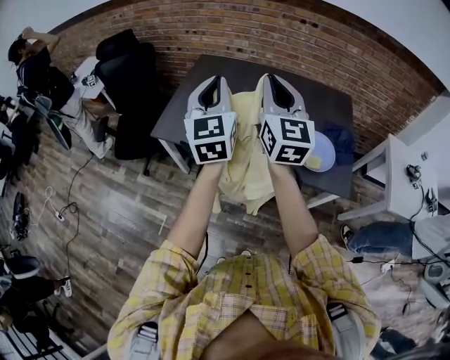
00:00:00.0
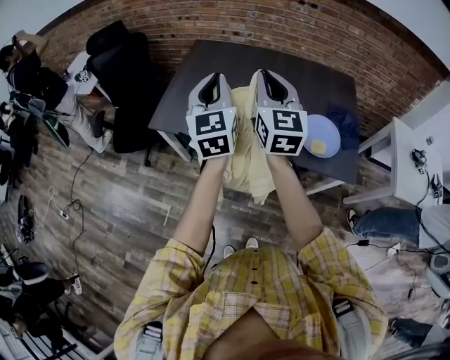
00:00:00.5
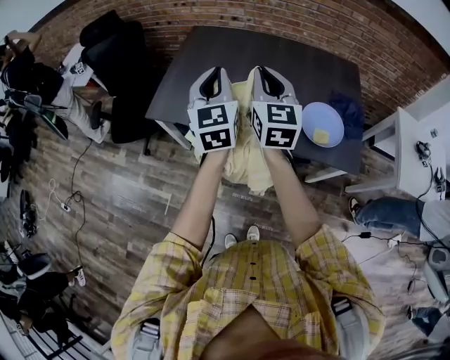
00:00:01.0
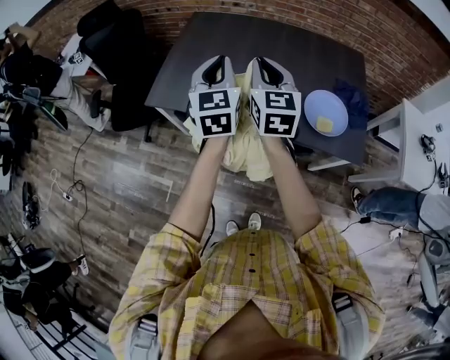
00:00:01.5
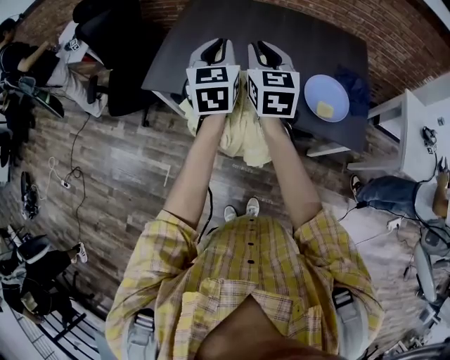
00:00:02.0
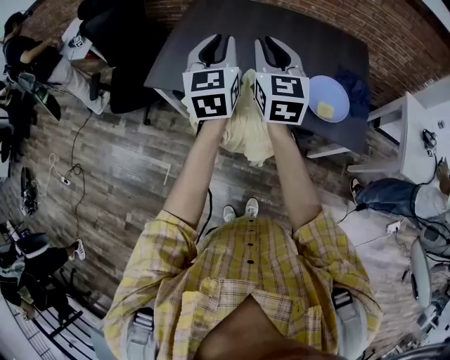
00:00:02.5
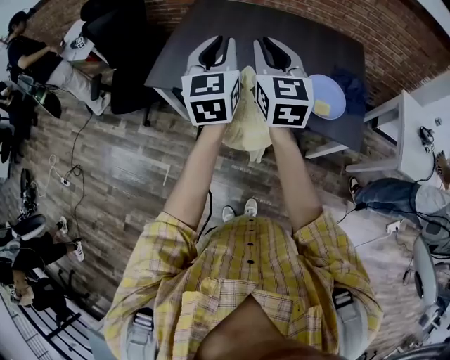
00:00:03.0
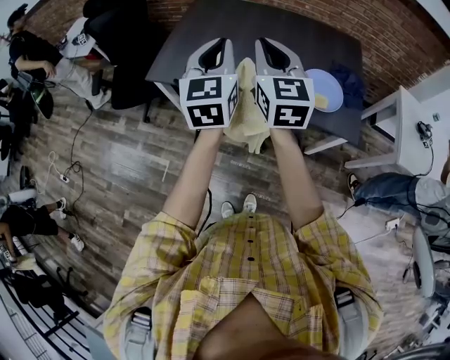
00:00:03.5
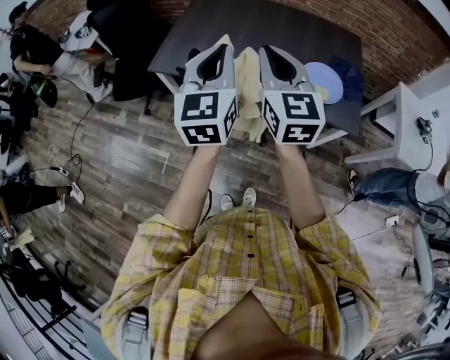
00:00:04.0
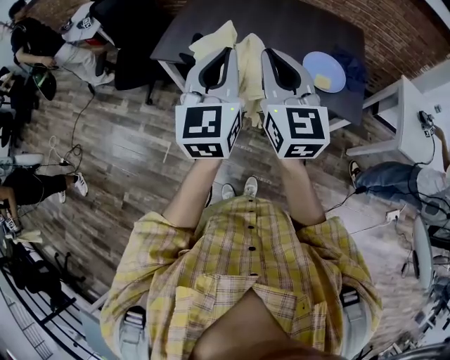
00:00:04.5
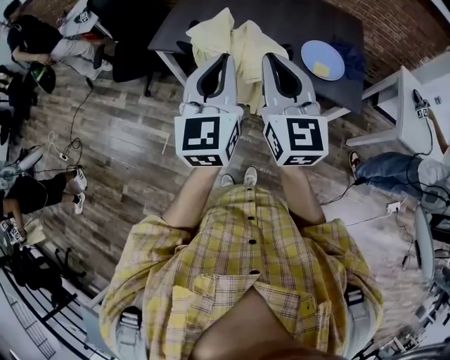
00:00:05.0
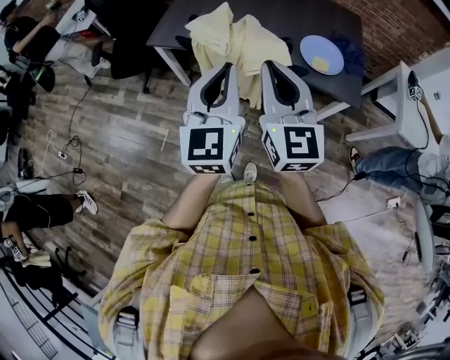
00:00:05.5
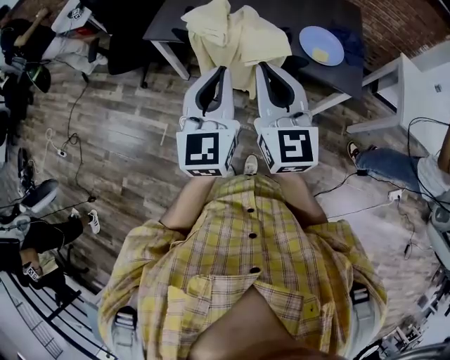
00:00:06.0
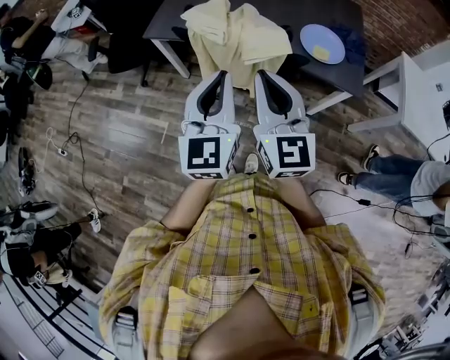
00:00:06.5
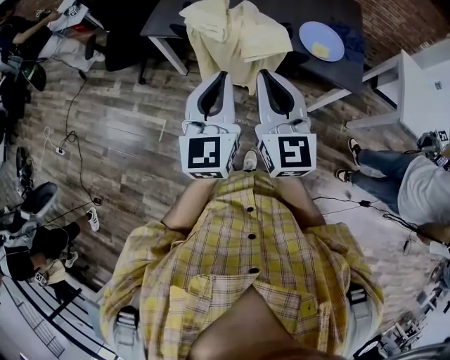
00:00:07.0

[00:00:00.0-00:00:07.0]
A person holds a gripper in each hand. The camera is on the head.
00:00:00.0 to 00:00:02.0: The right gripper goes about 15 cm downward, and rotates some 20 degrees. Meanwhile the left gripper is displaced downward and forward by approximately 15 cm.
00:00:02.0 to 00:00:03.5: The two grippers go roughly 15 cm backward and upward.
00:00:03.5 to 00:00:05.0: The two grippers go roughly 20 cm backward.
00:00:05.0 to 00:00:07.0: The two grippers go approximately 10 cm downward and backward.

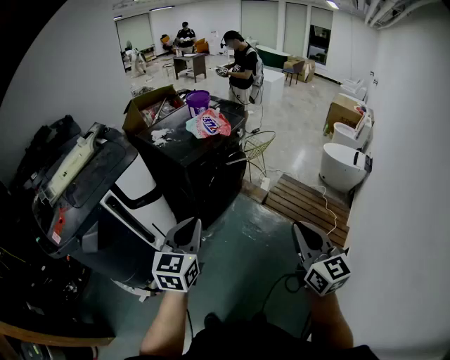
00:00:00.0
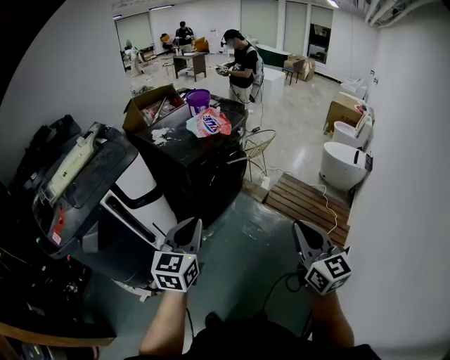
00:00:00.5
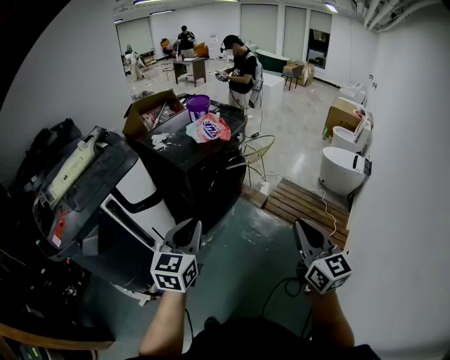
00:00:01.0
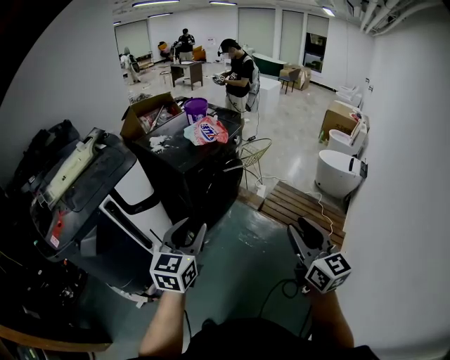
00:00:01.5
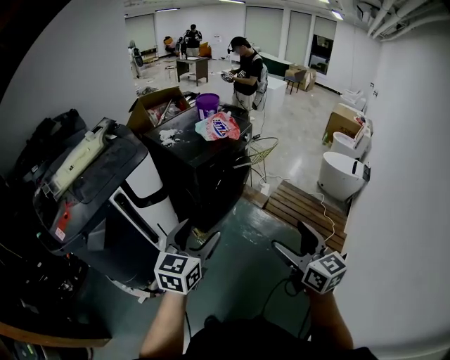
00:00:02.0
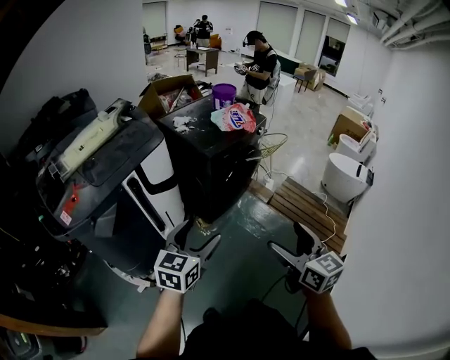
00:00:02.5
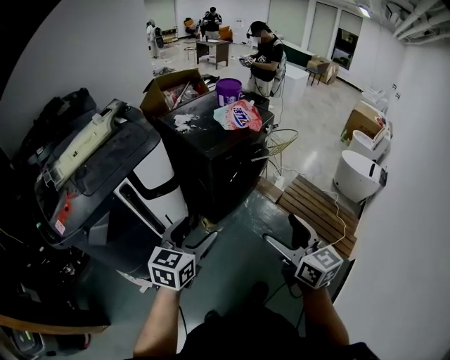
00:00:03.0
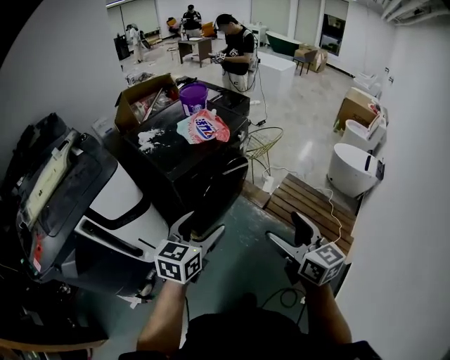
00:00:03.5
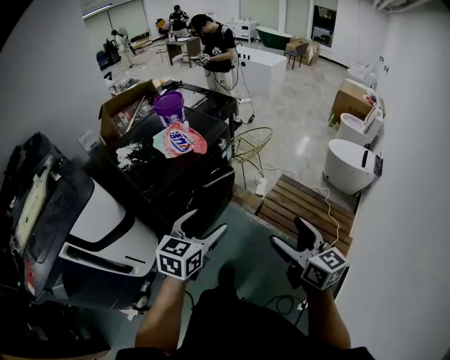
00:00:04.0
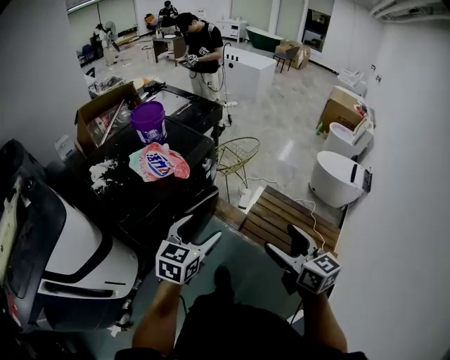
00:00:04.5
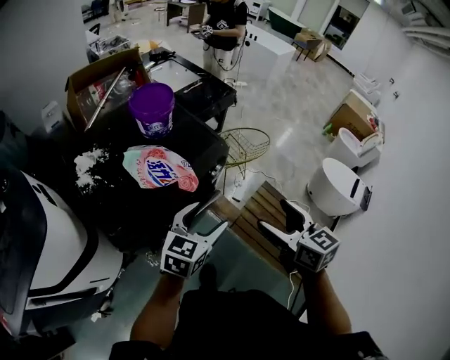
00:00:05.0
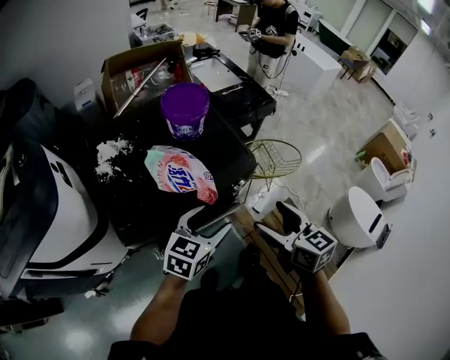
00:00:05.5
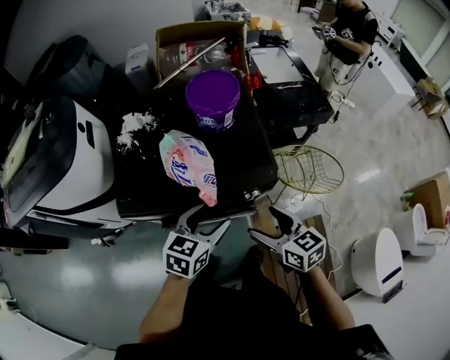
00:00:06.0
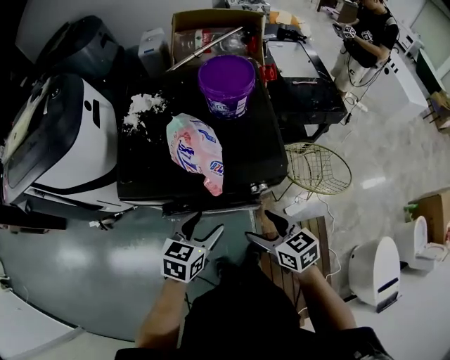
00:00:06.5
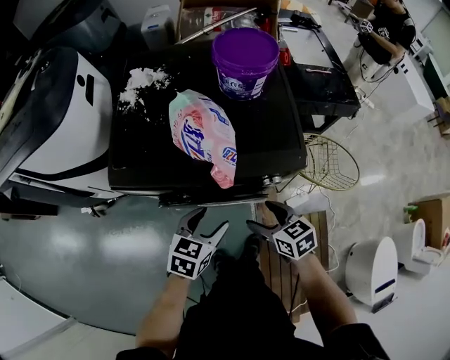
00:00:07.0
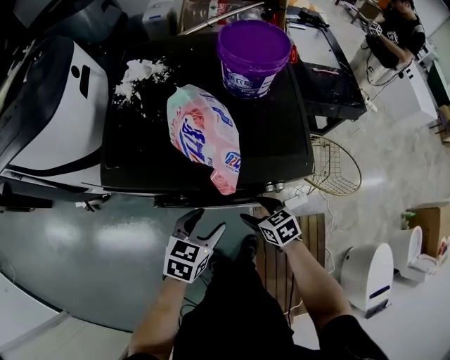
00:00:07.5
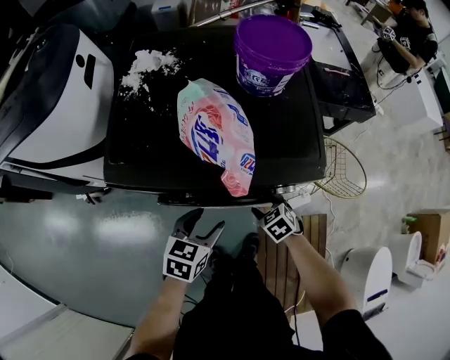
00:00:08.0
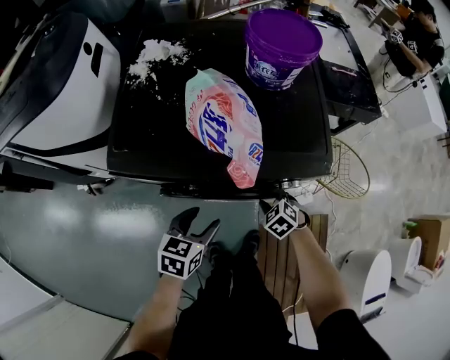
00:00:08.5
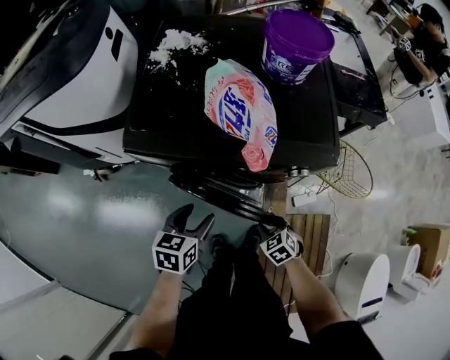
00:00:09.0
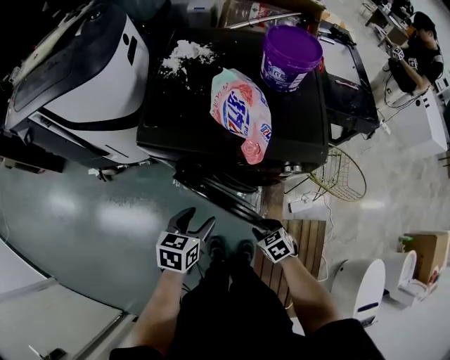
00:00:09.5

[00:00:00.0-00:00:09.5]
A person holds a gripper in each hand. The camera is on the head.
00:00:00.0 to 00:00:02.0: The right gripper heads to the left, covering about 10 cm, and opens up, while the left gripper opens its fingers.
00:00:02.0 to 00:00:04.0: Both grippers travel together forward and to the right, roughly 35 cm.
00:00:04.0 to 00:00:05.5: Both grippers move forward, approximately 35 cm. The right gripper turns by roughly 30 degrees.
00:00:05.5 to 00:00:07.5: The left gripper heads downward, covering about 20 cm, and rotates roughly 40 degrees; the right gripper moves downward, roughly 35 cm, and changes its angle by about 50 degrees.
00:00:07.5 to 00:00:09.5: The right gripper shifts approximately 15 cm backward, and closes up. Meanwhile the left gripper shifts approximately 10 cm to the left and backward.

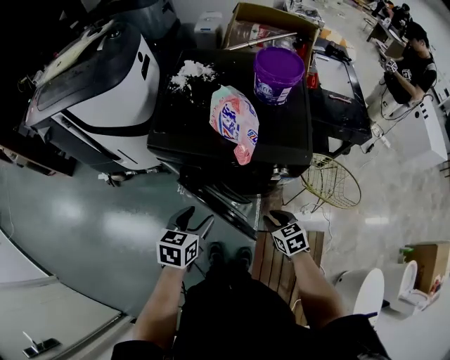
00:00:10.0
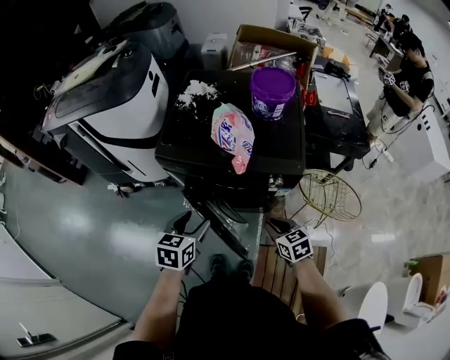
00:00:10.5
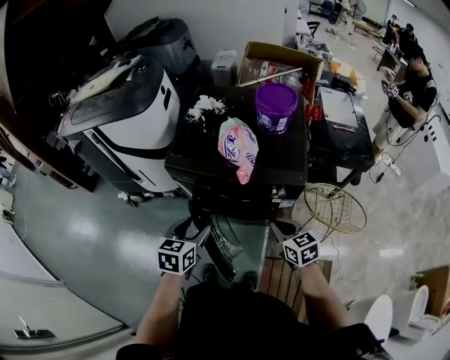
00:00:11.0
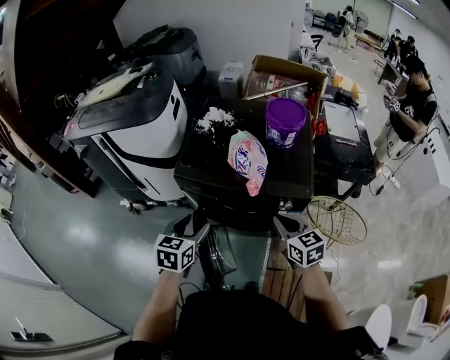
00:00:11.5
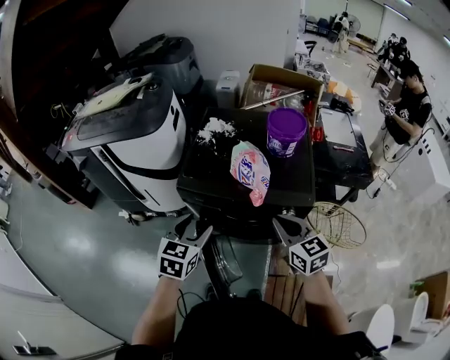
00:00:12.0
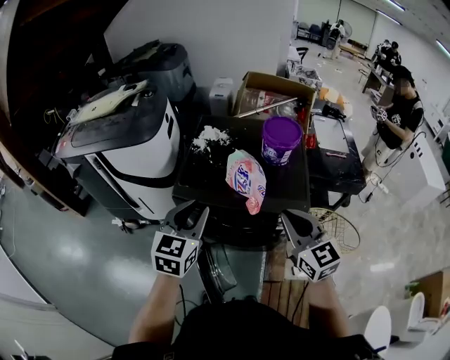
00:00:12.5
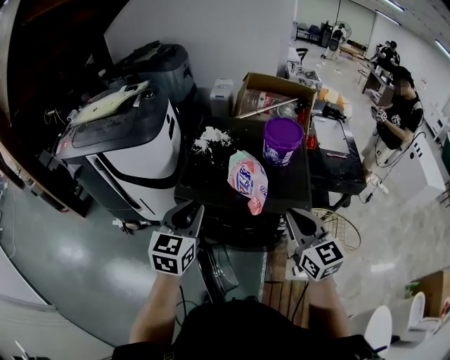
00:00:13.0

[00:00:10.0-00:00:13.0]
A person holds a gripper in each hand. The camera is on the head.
00:00:10.0 to 00:00:11.5: The left gripper travels upward by approximately 10 cm, while the right gripper travels upward by roughly 20 cm, and turns by roughly 20 degrees.
00:00:11.5 to 00:00:13.0: The right gripper is displaced upward by about 15 cm, and changes its angle by approximately 20 degrees. Meanwhile the left gripper heads upward and forward, covering approximately 15 cm, swivels about 20 degrees, and closes up.

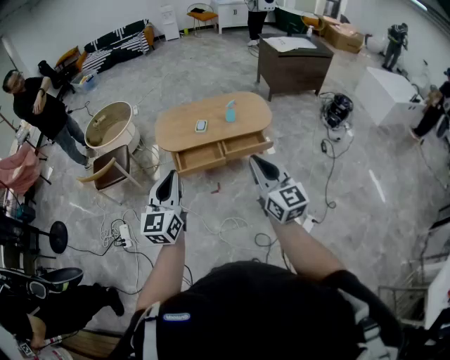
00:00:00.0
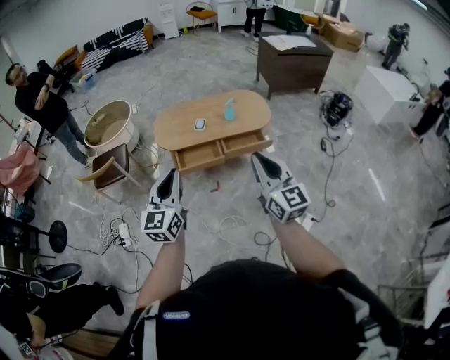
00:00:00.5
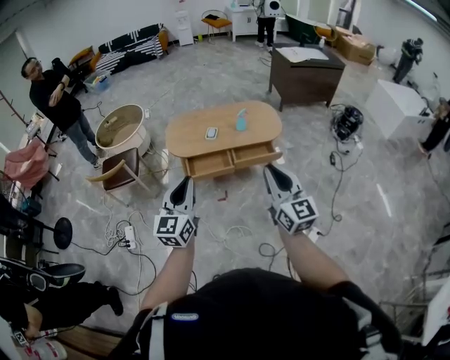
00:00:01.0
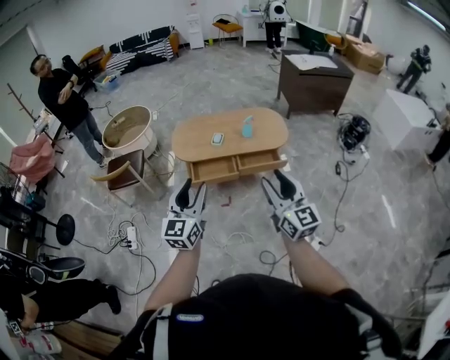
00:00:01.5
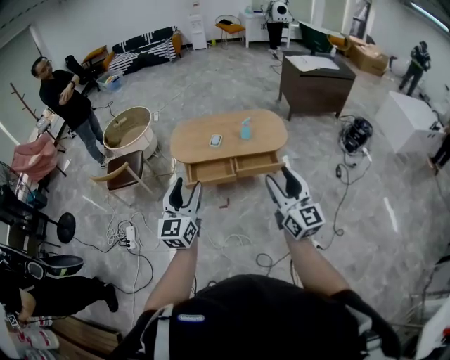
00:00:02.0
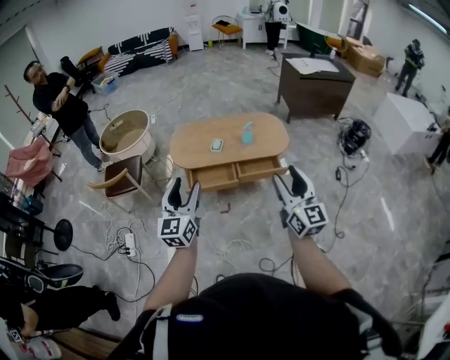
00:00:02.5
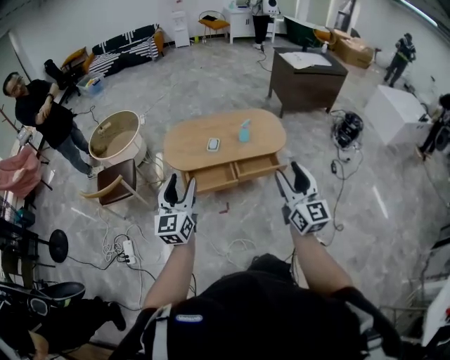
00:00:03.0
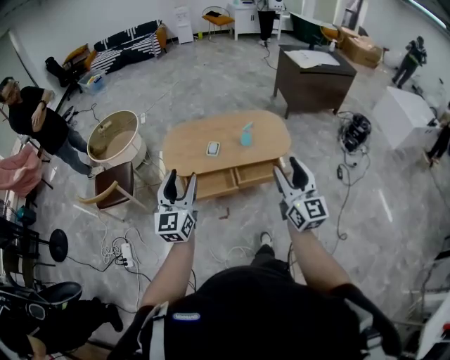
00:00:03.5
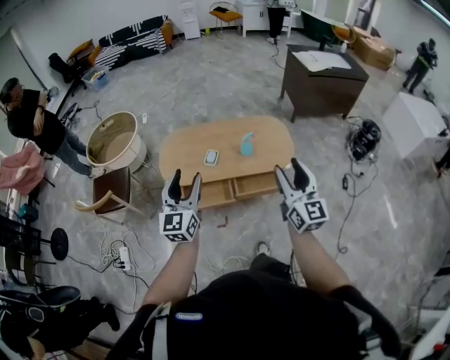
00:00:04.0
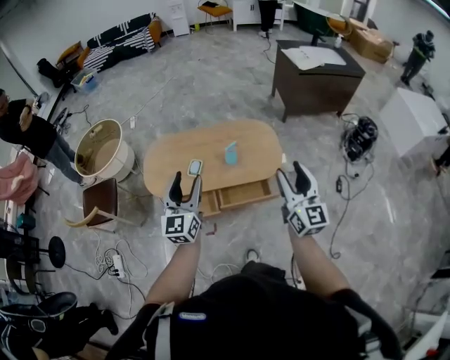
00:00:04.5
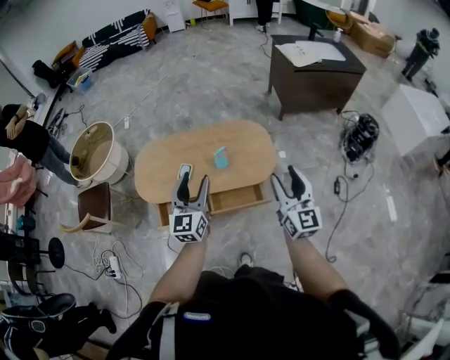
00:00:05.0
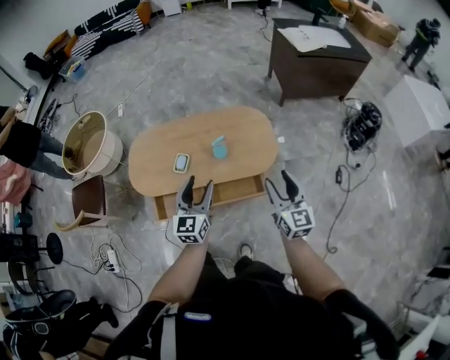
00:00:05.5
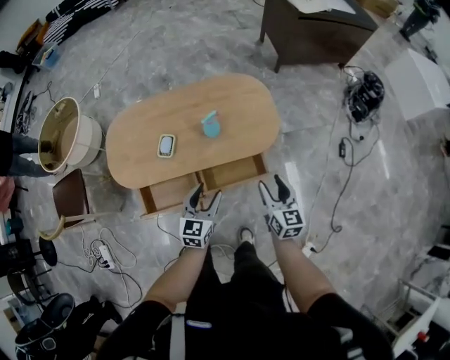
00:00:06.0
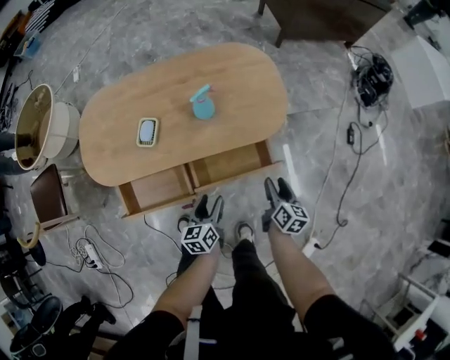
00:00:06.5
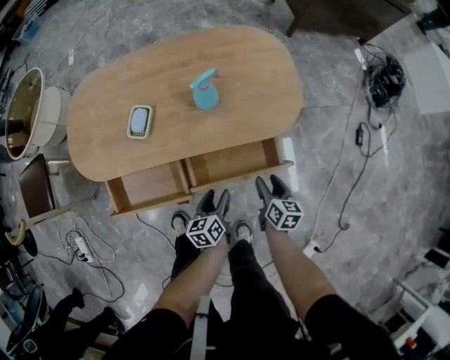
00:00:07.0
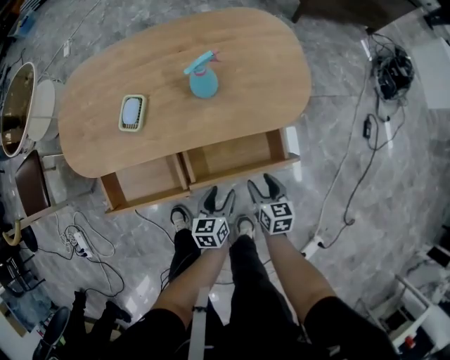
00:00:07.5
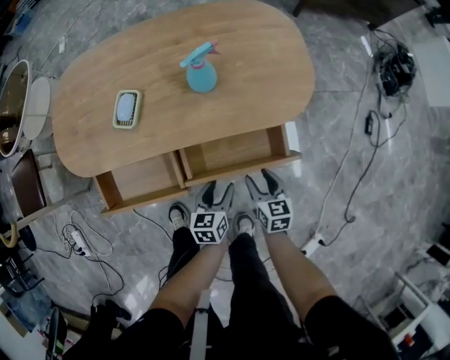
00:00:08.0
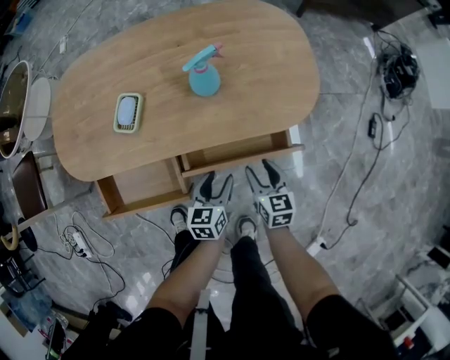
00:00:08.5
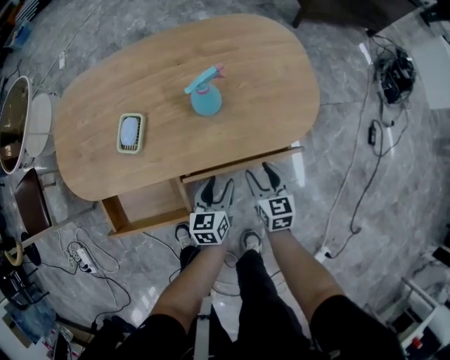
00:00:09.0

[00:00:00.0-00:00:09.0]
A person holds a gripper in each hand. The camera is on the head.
00:00:00.0 to 00:00:02.0: The left gripper goes roughly 5 cm to the right, and opens up. Meanwhile the right gripper shifts about 10 cm to the right, and opens up.
00:00:02.0 to 00:00:04.5: The pair of grippers is taken forward, approximately 40 cm.
00:00:04.5 to 00:00:07.0: Both grippers move downward, some 70 cm. The right gripper angles its fingers downward, by about 50 degrees. Meanwhile the left gripper tilts its fingers some 40 degrees downward.
00:00:07.0 to 00:00:09.0: The left gripper moves forward, roughly 10 cm, and changes its angle by approximately 20 degrees. The right gripper goes about 10 cm forward and to the left, and changes its angle by some 30 degrees.
